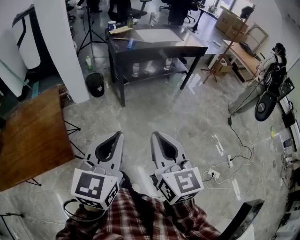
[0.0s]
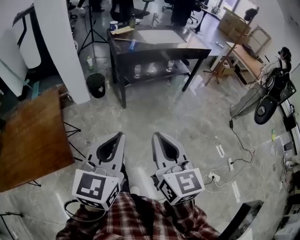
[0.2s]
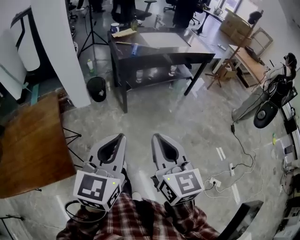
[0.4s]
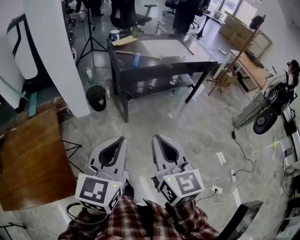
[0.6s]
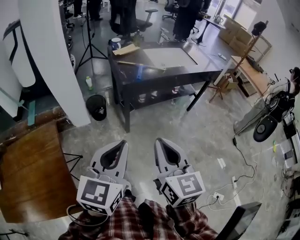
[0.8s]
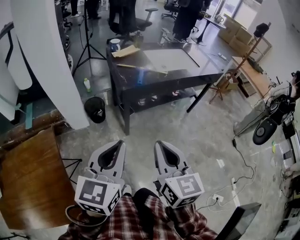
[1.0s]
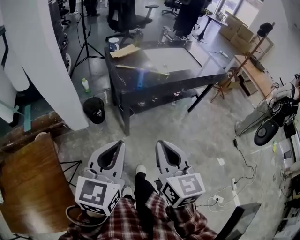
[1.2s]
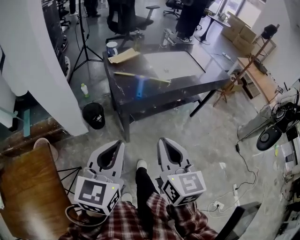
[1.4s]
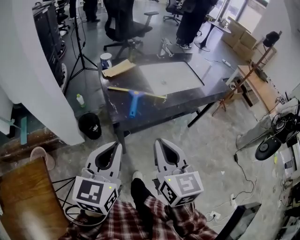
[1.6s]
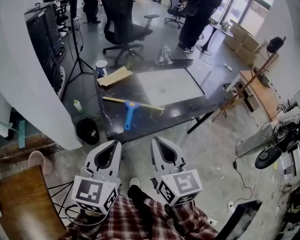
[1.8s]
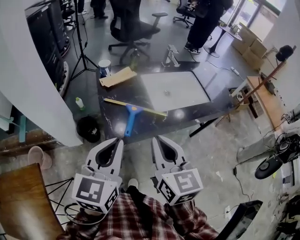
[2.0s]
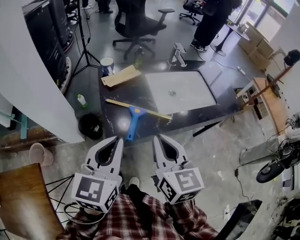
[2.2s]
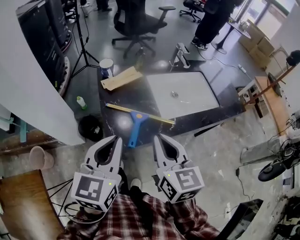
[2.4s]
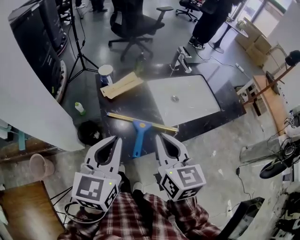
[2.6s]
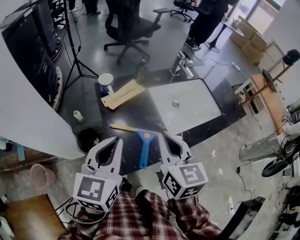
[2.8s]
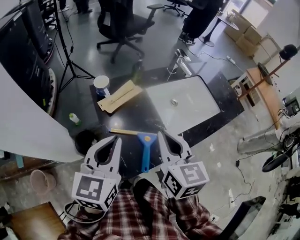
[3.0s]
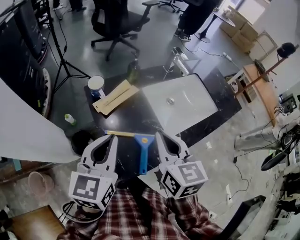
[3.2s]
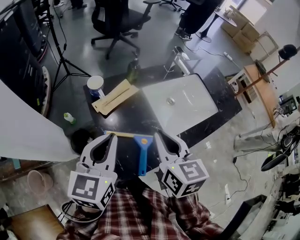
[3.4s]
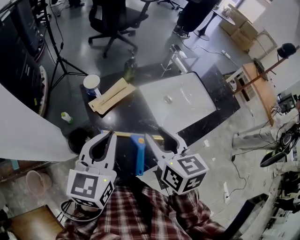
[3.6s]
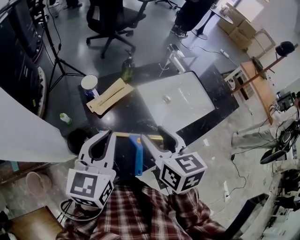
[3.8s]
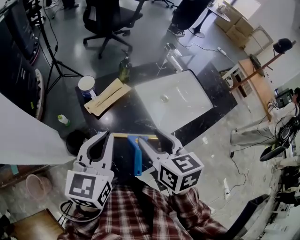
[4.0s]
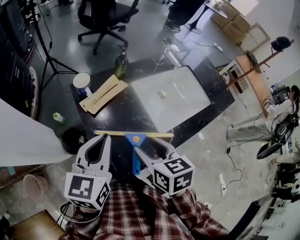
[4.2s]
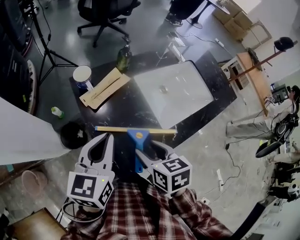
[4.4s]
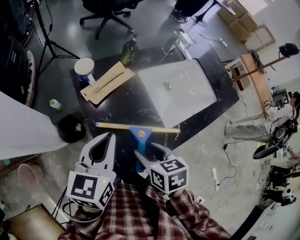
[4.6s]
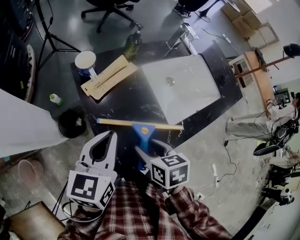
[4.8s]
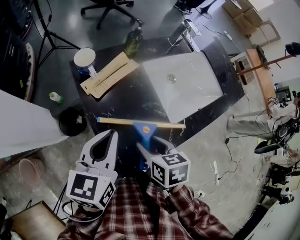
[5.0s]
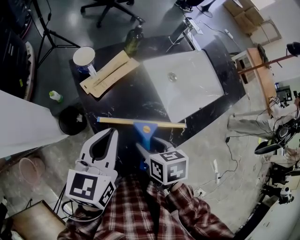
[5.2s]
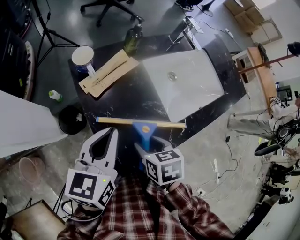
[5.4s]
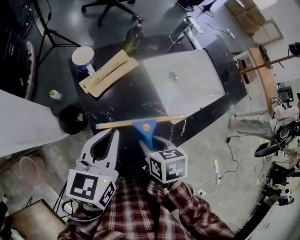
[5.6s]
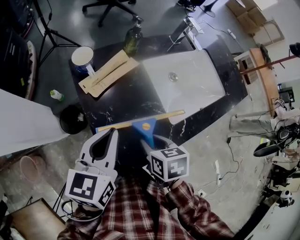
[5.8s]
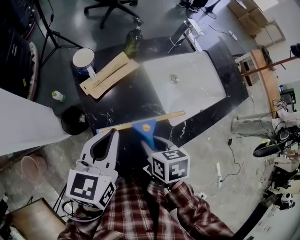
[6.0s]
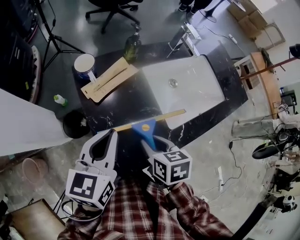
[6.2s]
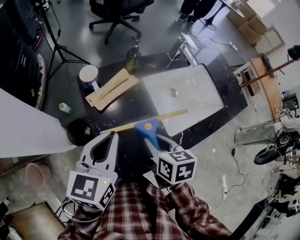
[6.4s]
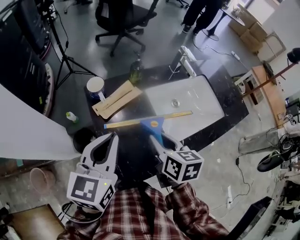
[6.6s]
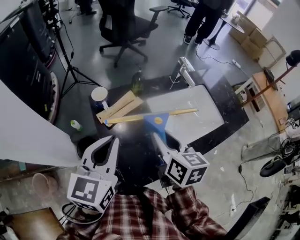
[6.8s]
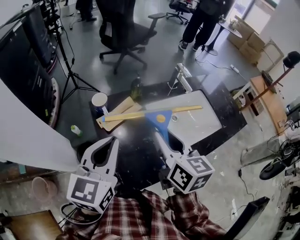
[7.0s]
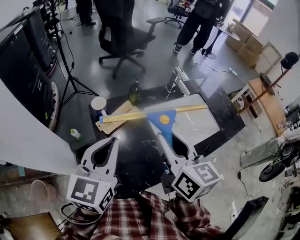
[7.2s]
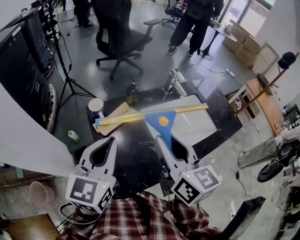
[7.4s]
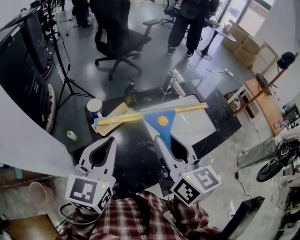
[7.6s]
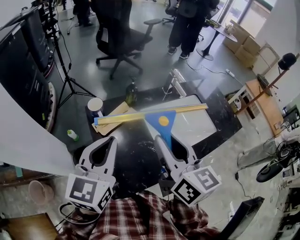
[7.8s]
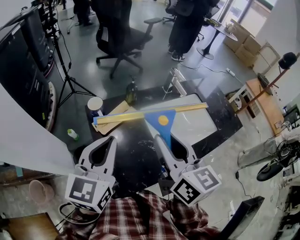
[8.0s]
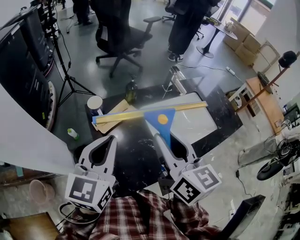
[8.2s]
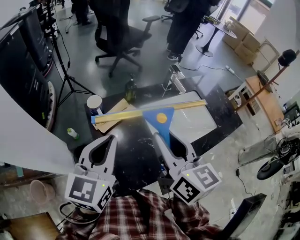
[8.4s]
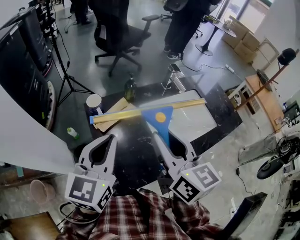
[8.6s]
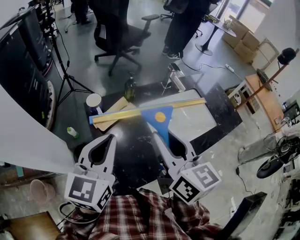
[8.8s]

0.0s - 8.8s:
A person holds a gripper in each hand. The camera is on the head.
0.0s - 1.4s: Both grippers are carried forward, approximately 50 cm.
1.4s - 3.0s: Both grippers are carried forward, approximately 40 cm.
3.0s - 4.4s: The right gripper heads downward, covering some 15 cm, rotates roughly 30 degrees, and opens up; the left gripper travels downward by some 5 cm.
4.4s - 5.8s: The right gripper travels downward by about 10 cm, and closes up.
5.8s - 7.4s: The left gripper heads upward, covering approximately 15 cm, and changes its angle by about 20 degrees; the right gripper moves upward, roughly 30 cm, and points its fingers approximately 50 degrees further upward.
7.4s - 8.8s: Both grippers stay about where they are.

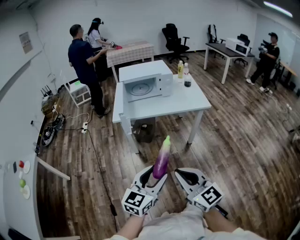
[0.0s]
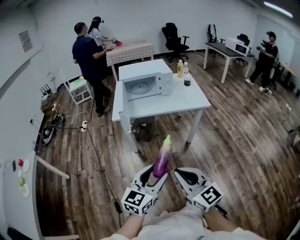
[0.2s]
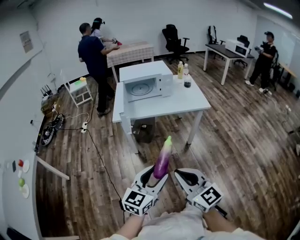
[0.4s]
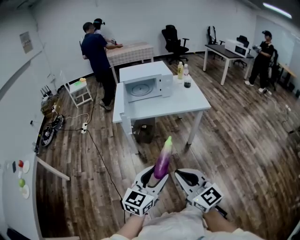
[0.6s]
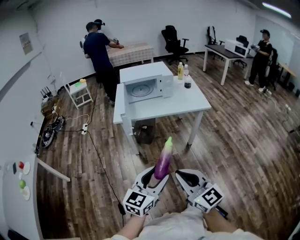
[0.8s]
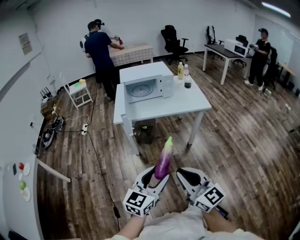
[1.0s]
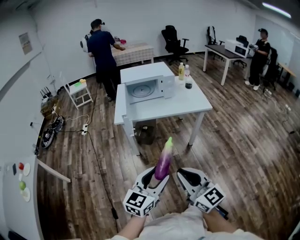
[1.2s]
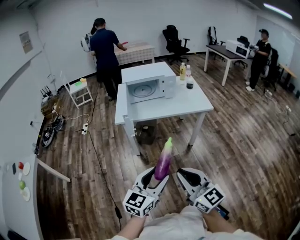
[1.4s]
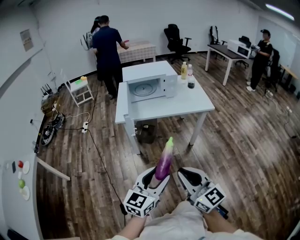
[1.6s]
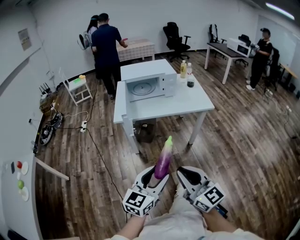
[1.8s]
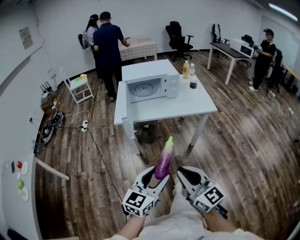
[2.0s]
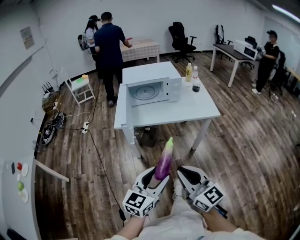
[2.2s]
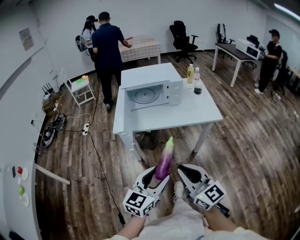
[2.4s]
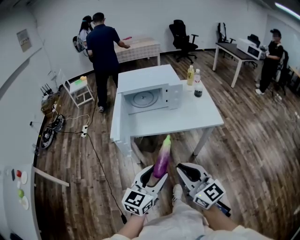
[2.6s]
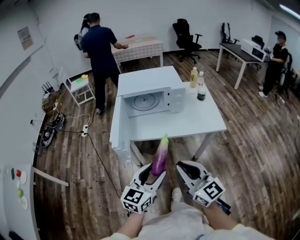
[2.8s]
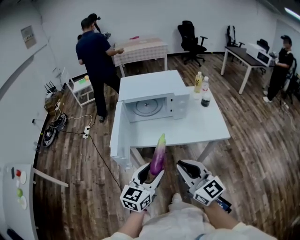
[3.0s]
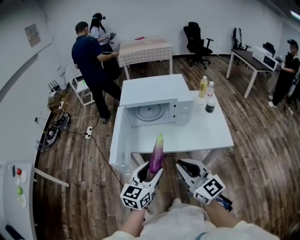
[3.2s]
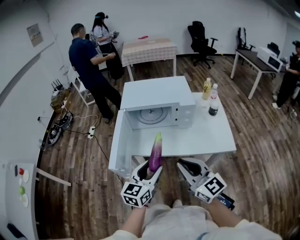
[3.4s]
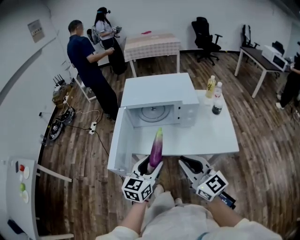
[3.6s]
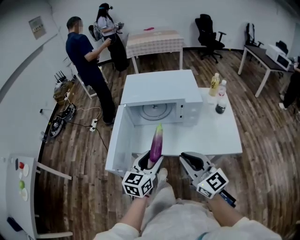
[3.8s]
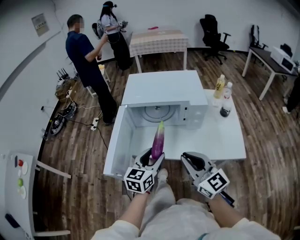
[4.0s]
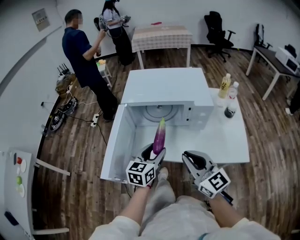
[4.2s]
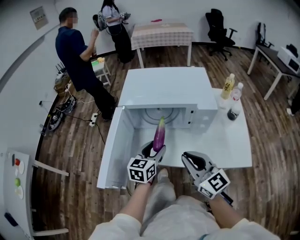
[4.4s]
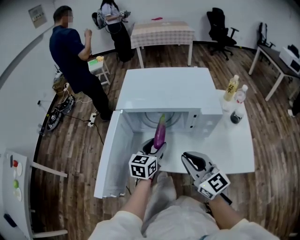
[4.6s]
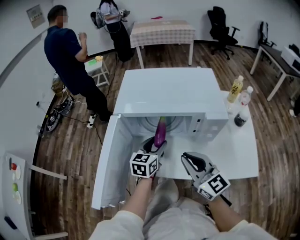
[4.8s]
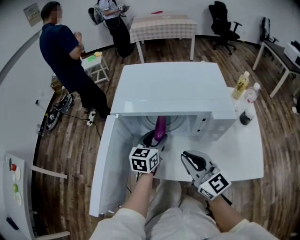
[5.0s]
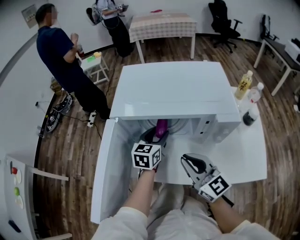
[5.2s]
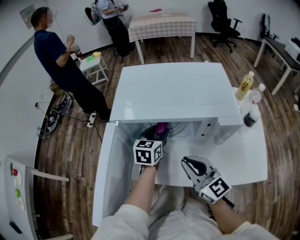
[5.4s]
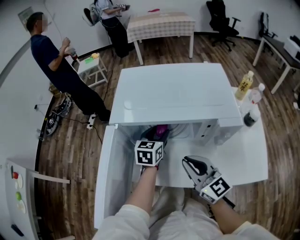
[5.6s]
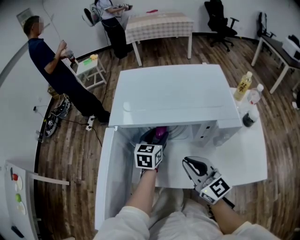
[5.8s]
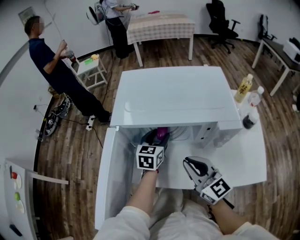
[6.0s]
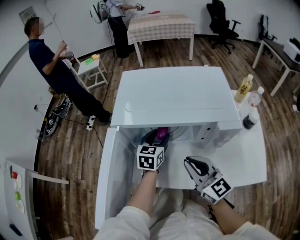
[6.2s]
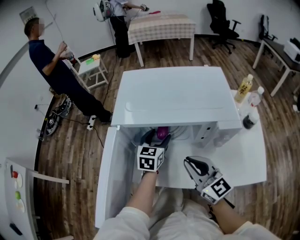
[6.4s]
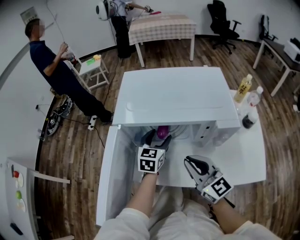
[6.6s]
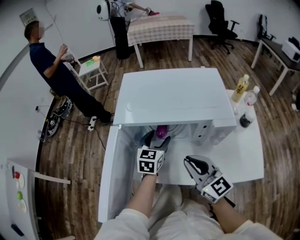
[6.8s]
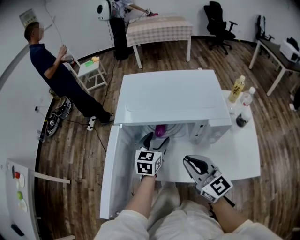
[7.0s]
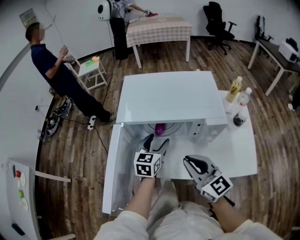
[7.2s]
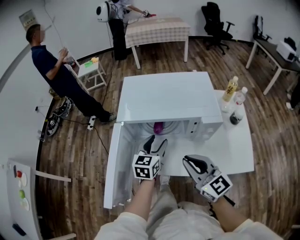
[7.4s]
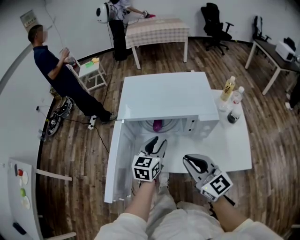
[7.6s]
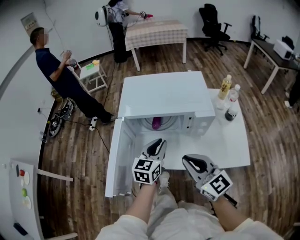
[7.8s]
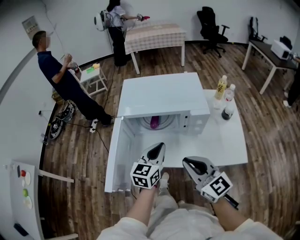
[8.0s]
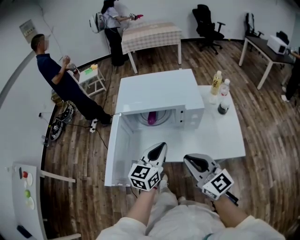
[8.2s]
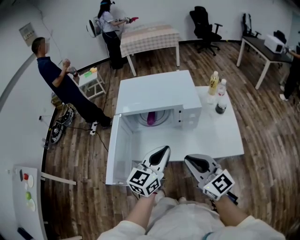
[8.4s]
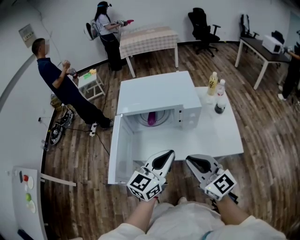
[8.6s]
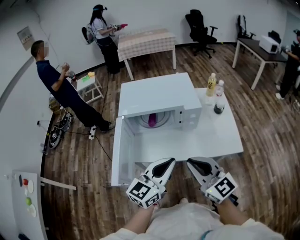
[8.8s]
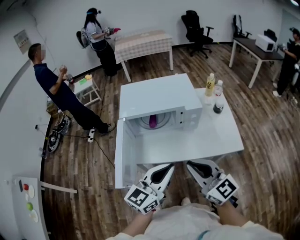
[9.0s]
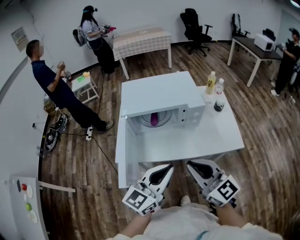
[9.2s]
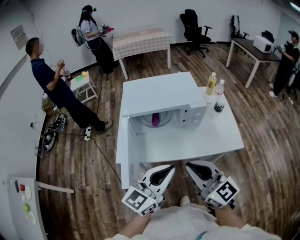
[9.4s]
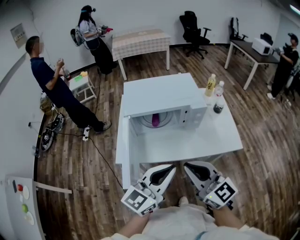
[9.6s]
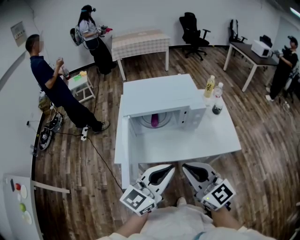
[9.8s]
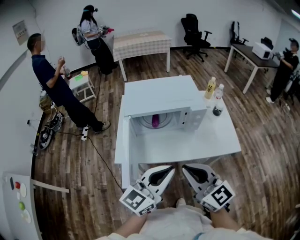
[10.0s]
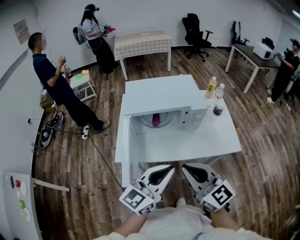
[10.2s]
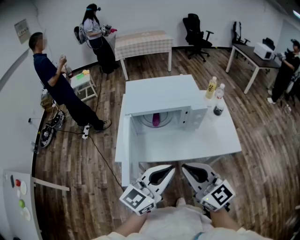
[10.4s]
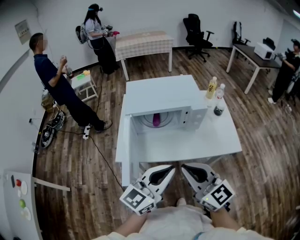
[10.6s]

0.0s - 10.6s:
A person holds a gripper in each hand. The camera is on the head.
0.0s - 1.6s: The grippers stay close to where they were, moving slightly.
1.6s - 3.0s: The two grippers go roughly 30 cm forward.
3.0s - 4.6s: The left gripper travels forward and downward by roughly 35 cm; the right gripper moves forward, approximately 25 cm.
4.6s - 6.0s: The left gripper shifts roughly 15 cm forward, while the right gripper heads forward and downward, covering approximately 10 cm.
6.0s - 7.6s: The right gripper heads upward and backward, covering about 15 cm. The left gripper moves backward and upward, roughly 15 cm.
7.6s - 9.0s: The right gripper travels backward and upward by about 15 cm; the left gripper travels backward and upward by roughly 25 cm, swivels roughly 30 degrees, and closes its fingers.
9.0s - 10.6s: The right gripper goes some 5 cm to the left; the left gripper shifts by about 5 cm.

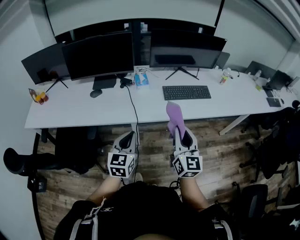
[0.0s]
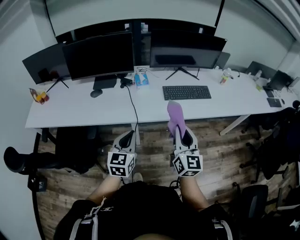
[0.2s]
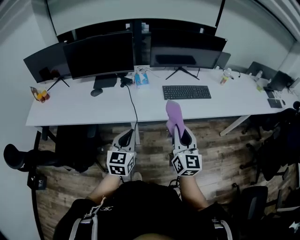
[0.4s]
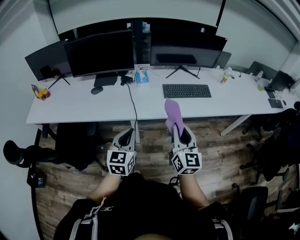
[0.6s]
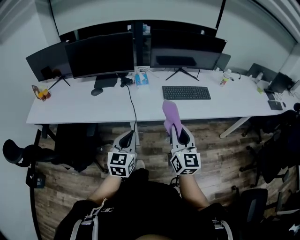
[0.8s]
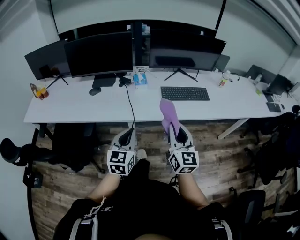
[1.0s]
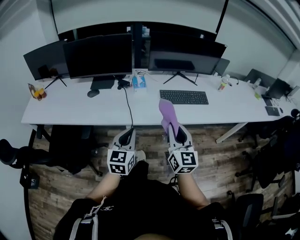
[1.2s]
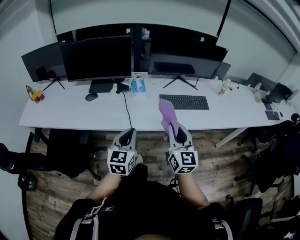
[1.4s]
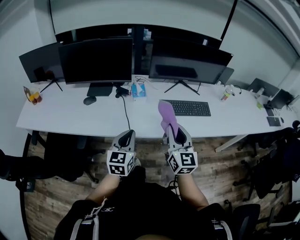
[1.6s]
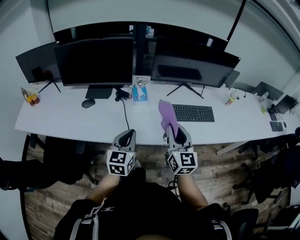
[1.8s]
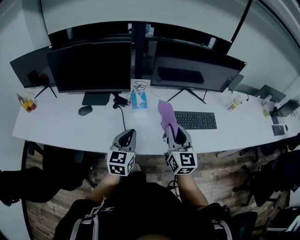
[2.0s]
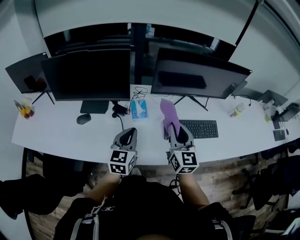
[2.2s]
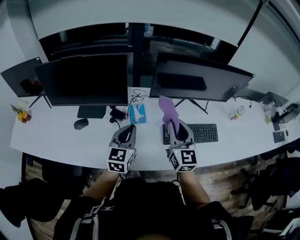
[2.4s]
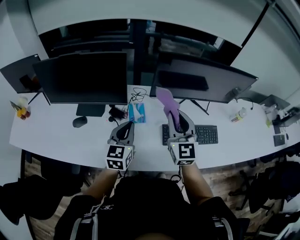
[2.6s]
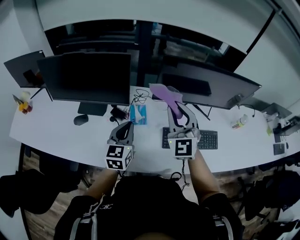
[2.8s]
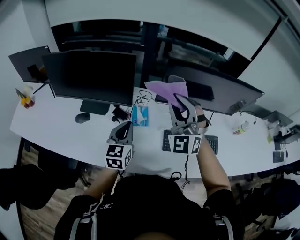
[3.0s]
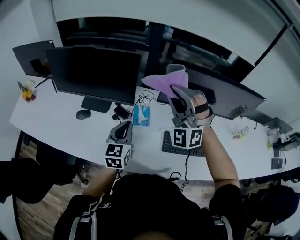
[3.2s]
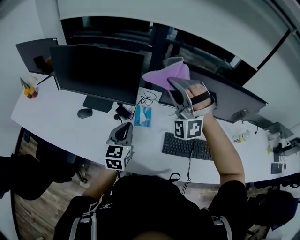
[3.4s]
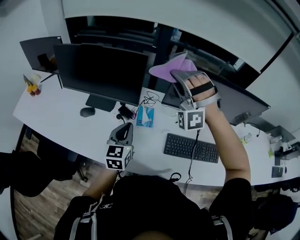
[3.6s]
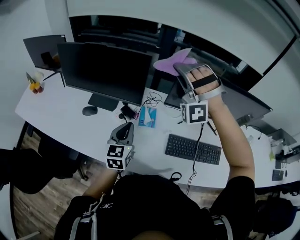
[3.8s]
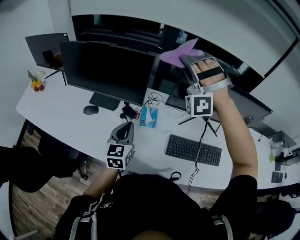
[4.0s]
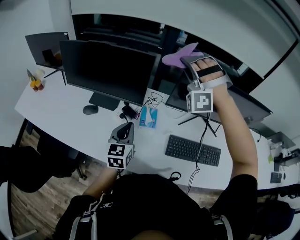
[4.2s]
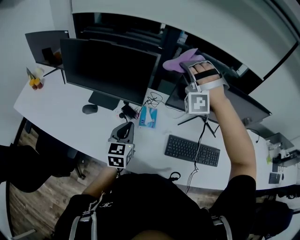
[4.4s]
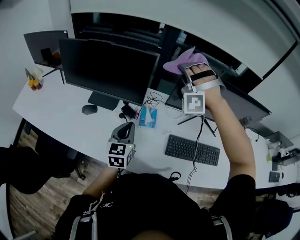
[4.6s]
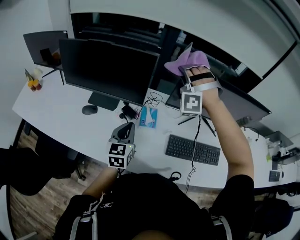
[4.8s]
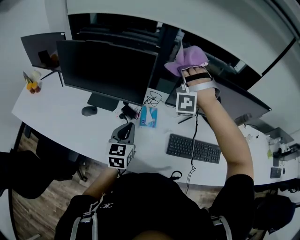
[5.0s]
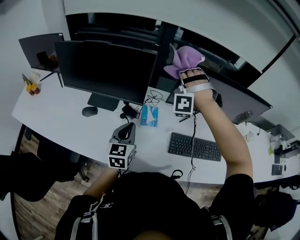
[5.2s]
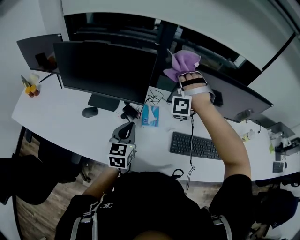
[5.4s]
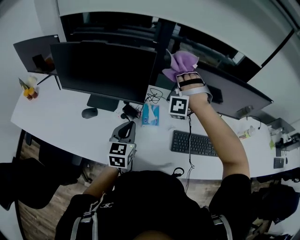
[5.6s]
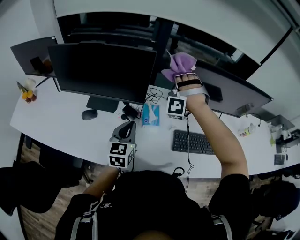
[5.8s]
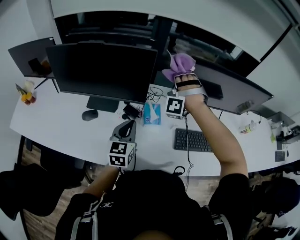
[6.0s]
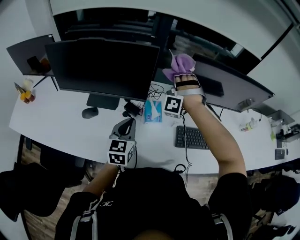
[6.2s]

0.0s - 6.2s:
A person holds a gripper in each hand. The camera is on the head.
0.0s - 1.6s: Both grippers move forward, roughly 10 cm.
1.6s - 3.2s: The two grippers go about 35 cm forward. The right gripper rolls counterclockwise, seen from behind, by approximately 80 degrees.
3.2s - 4.6s: The right gripper goes roughly 10 cm forward, and rotates some 40 degrees.
4.6s - 6.2s: The right gripper heads downward, covering some 15 cm, and turns by about 30 degrees. The left gripper ends up approximately 5 cm from where it was.
